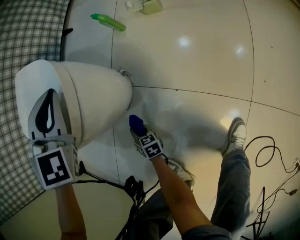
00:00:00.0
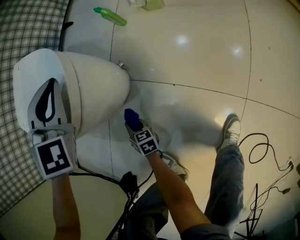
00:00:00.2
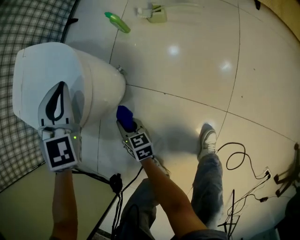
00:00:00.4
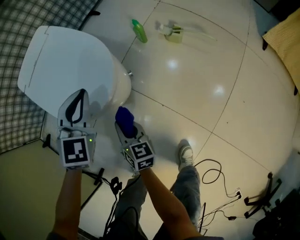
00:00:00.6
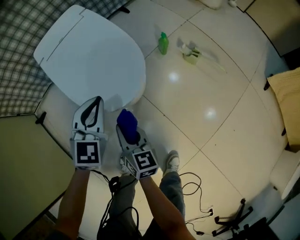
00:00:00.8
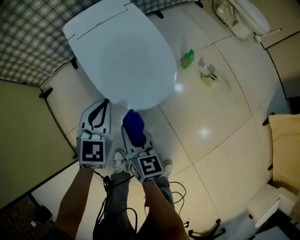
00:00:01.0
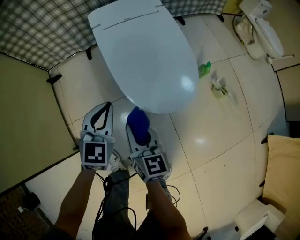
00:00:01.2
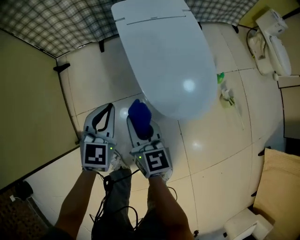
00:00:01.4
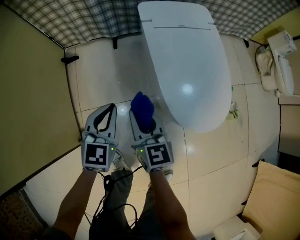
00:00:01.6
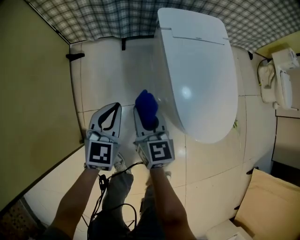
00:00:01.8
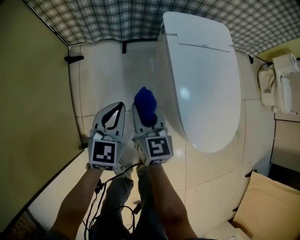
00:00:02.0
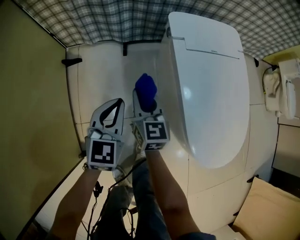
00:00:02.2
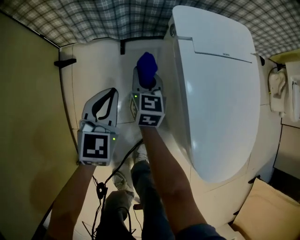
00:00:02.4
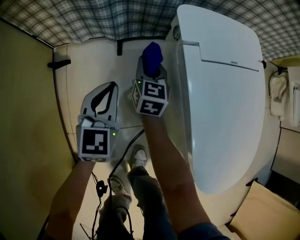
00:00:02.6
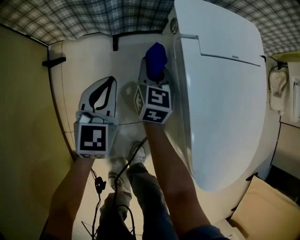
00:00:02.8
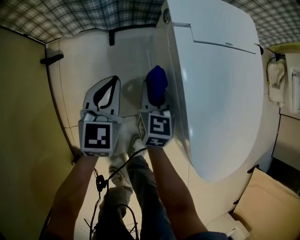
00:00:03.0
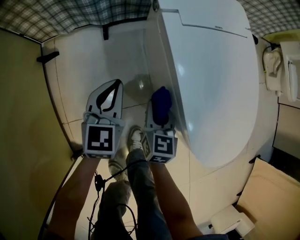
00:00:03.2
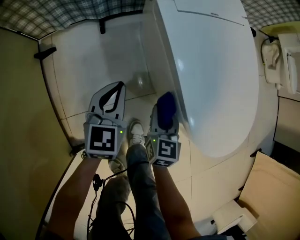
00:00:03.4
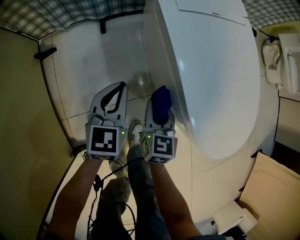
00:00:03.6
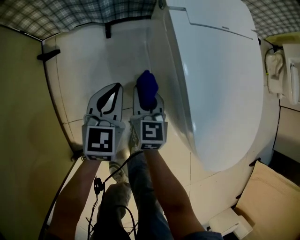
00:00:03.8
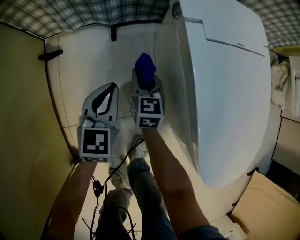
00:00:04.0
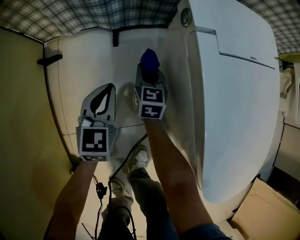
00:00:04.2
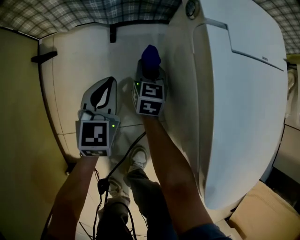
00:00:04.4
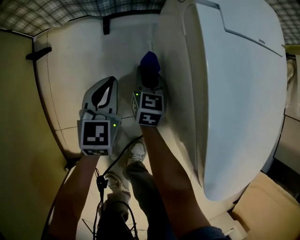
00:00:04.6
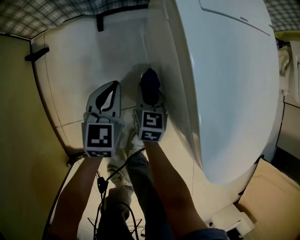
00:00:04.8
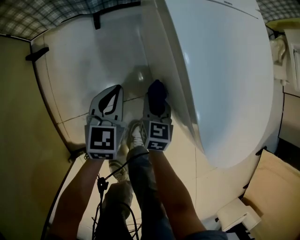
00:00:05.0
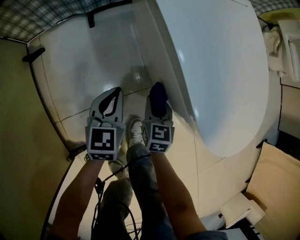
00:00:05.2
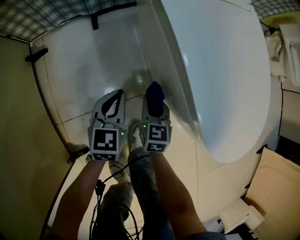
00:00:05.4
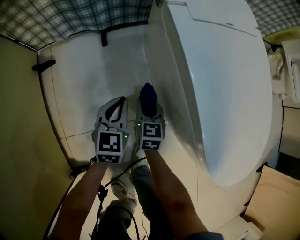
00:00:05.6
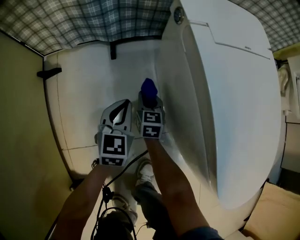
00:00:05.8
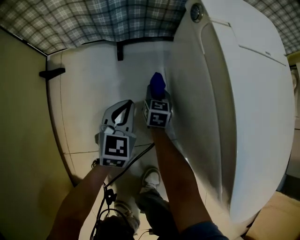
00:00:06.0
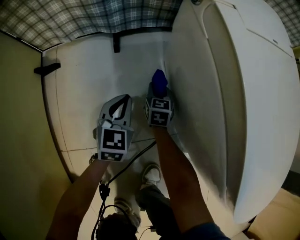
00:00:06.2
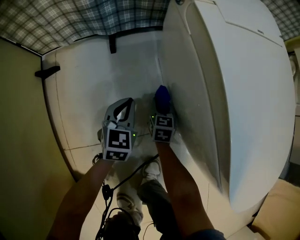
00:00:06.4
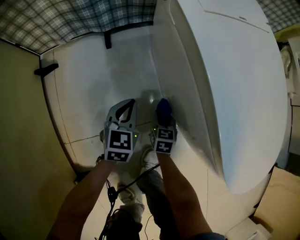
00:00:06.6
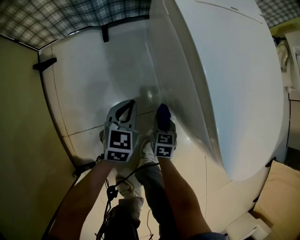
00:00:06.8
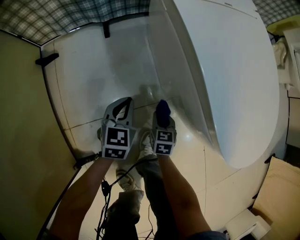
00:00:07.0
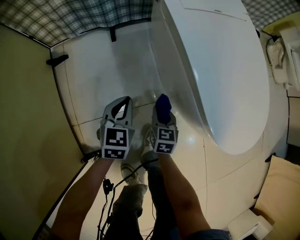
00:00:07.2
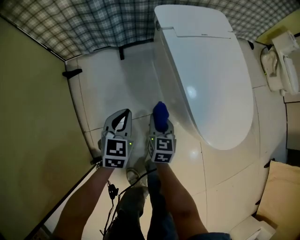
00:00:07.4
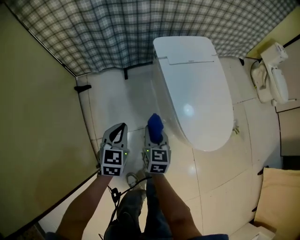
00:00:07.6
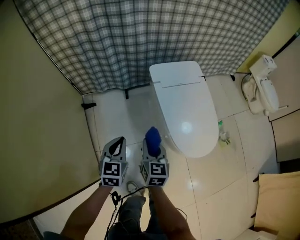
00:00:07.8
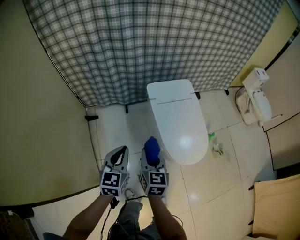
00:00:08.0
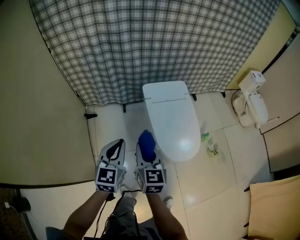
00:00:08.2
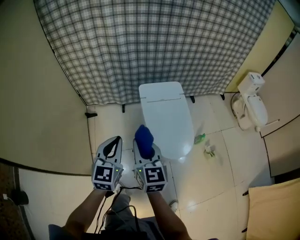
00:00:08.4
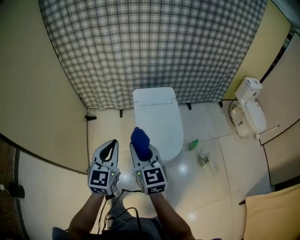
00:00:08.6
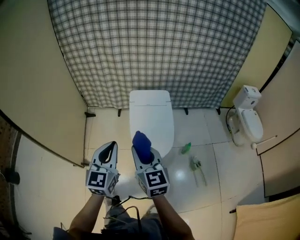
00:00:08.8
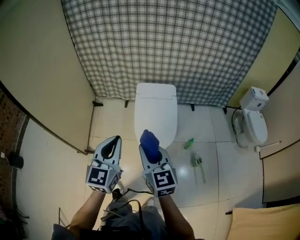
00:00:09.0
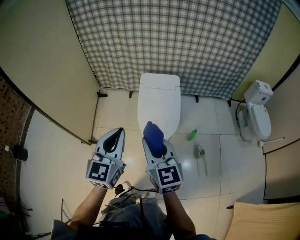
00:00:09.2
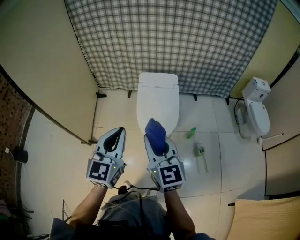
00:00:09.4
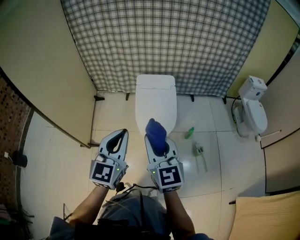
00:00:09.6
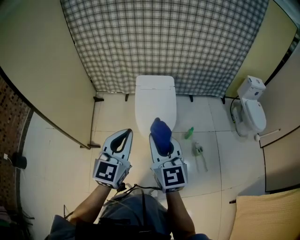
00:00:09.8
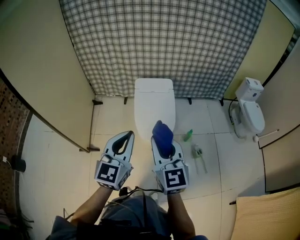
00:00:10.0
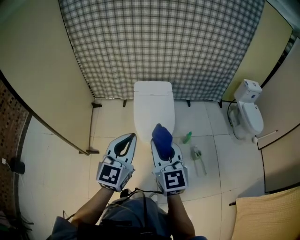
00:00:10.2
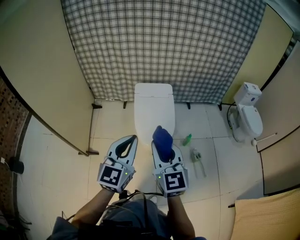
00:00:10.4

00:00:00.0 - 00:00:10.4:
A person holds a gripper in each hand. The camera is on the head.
00:00:00.0 - 00:00:01.4: The right gripper shifts roughly 50 cm upward, and rotates around the line of its fingers by some 40 degrees, counterclockwise from behind. The left gripper moves approximately 40 cm, and rotates around the line of its fingers by some 60 degrees, counterclockwise from behind.
00:00:01.4 - 00:00:03.0: The left gripper is displaced forward, downward and to the left by approximately 35 cm, while the right gripper travels forward and downward by some 40 cm.
00:00:03.0 - 00:00:04.4: The right gripper moves downward and forward, about 20 cm, while the left gripper goes some 10 cm downward, and moves approximately 10 cm backward and comes back.
00:00:04.4 - 00:00:06.0: The right gripper is displaced downward by some 10 cm, and travels backward and back again, roughly 30 cm each way. Meanwhile the left gripper goes about 5 cm downward, and travels backward and back again, some 15 cm each way.
00:00:06.0 - 00:00:07.4: The right gripper heads backward and upward, covering some 40 cm. The left gripper shifts some 25 cm upward and backward.
00:00:07.4 - 00:00:09.0: Both grippers are carried roughly 40 cm. The grippers both shift upward by roughly 60 cm. The left gripper tilts its fingers some 30 degrees upward, while the right gripper swivels some 40 degrees.
00:00:09.0 - 00:00:10.4: The left gripper heads backward and upward, covering roughly 10 cm, while the right gripper moves upward and backward, some 10 cm.
